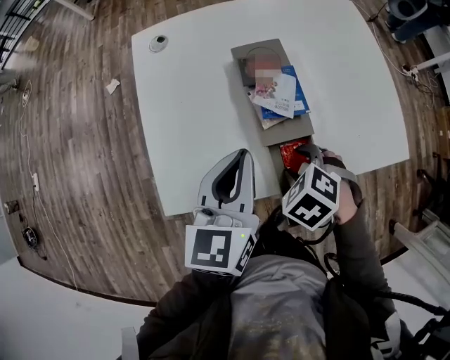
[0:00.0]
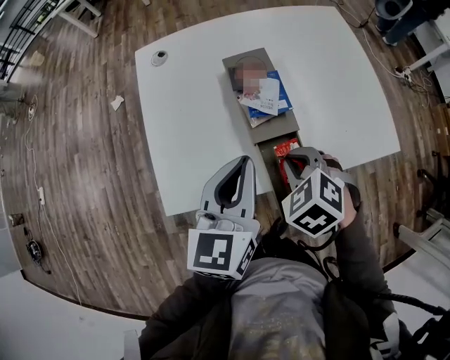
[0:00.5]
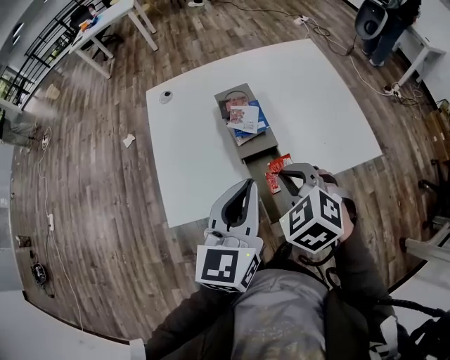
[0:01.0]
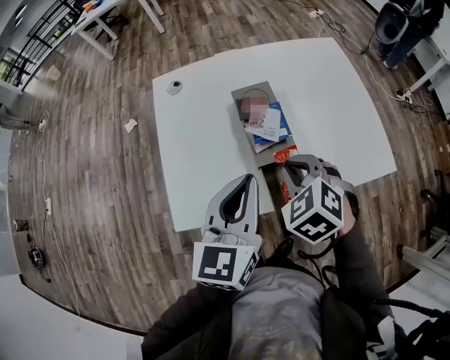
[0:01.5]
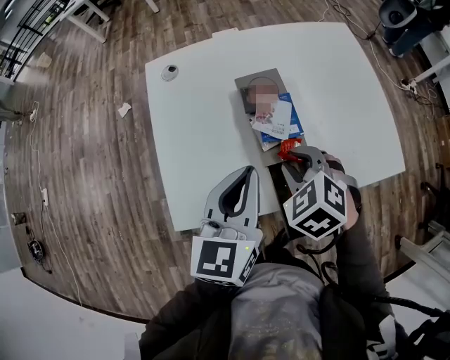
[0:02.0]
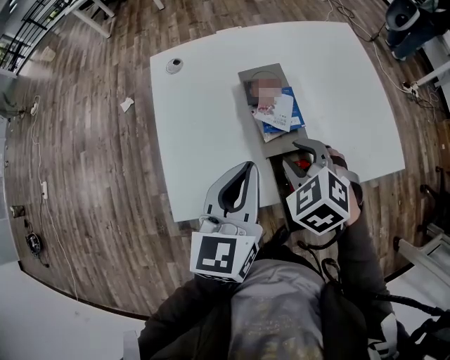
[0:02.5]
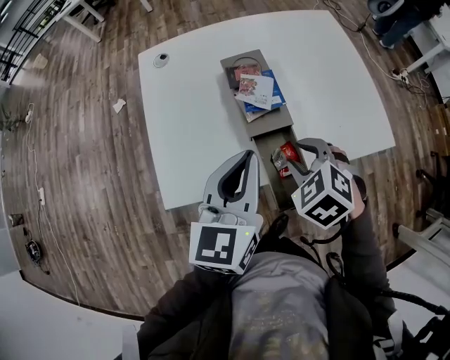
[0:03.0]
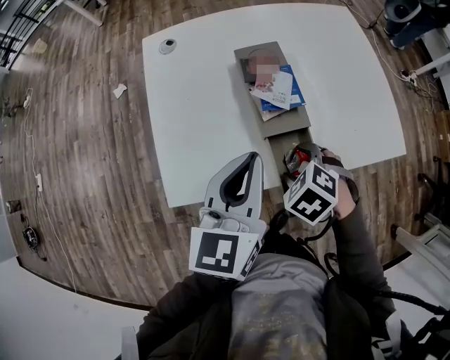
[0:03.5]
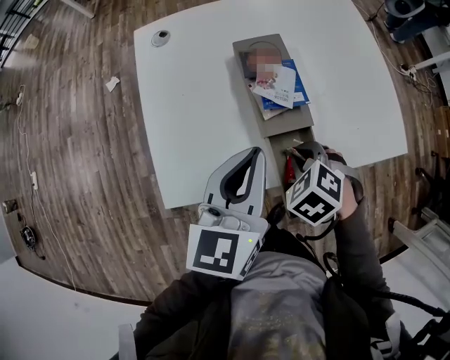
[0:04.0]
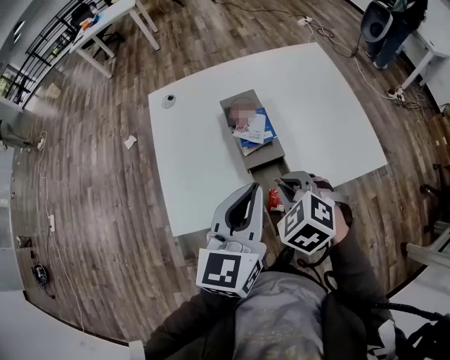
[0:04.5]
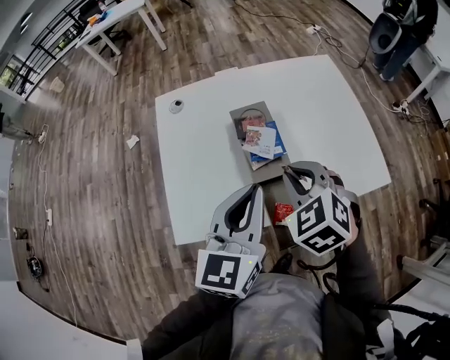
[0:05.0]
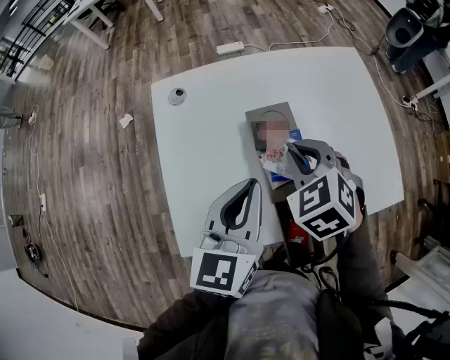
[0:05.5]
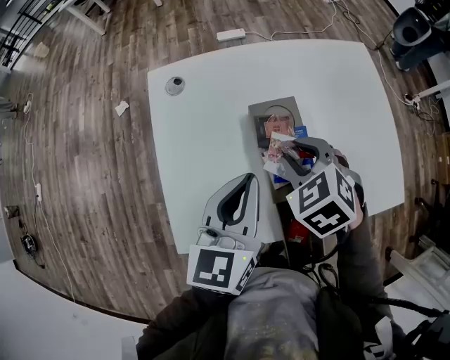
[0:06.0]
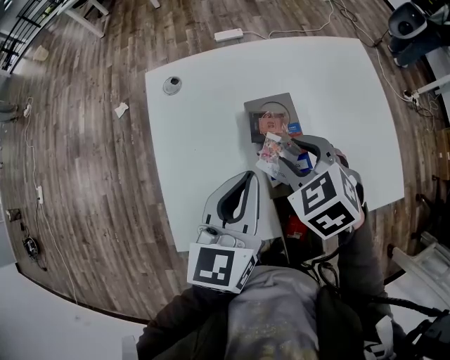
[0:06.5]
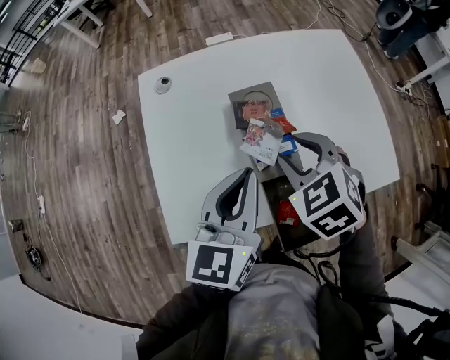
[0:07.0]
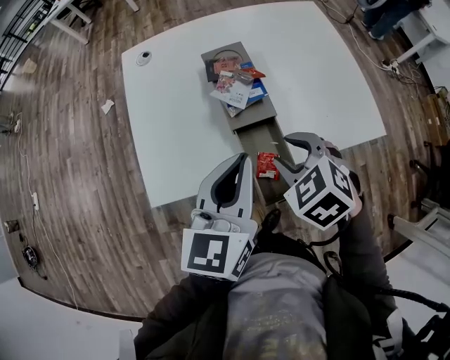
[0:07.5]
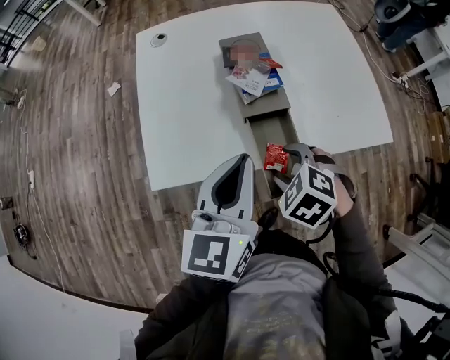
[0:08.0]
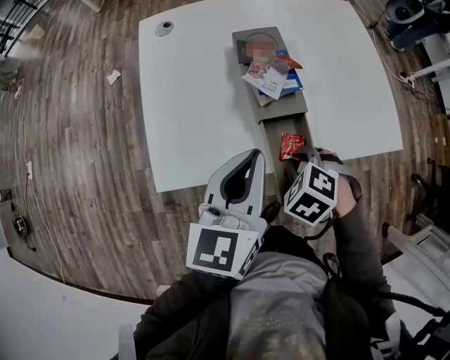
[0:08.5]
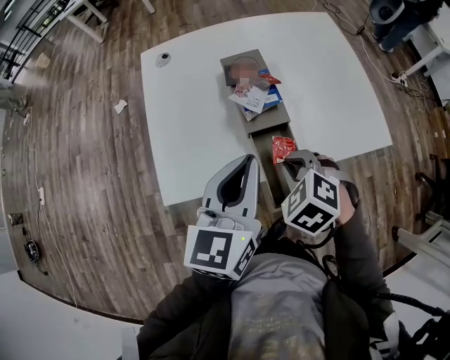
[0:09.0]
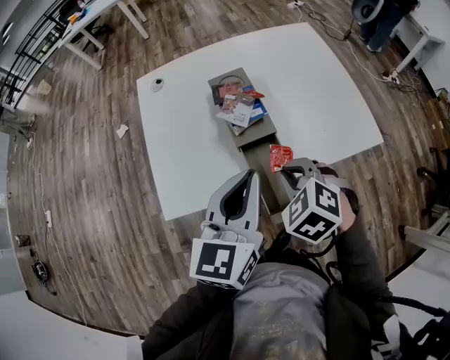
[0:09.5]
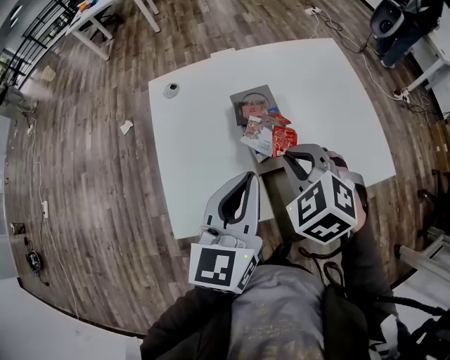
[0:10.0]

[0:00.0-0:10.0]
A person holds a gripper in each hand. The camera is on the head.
0:00.0 to 0:02.0: The right gripper is displaced upward by approximately 10 cm, and closes up.
0:02.0 to 0:04.0: The right gripper shifts some 10 cm downward and backward, and opens and closes again.
0:04.0 to 0:06.0: The left gripper is displaced forward by about 10 cm. Meanwhile the right gripper heads forward and upward, covering roughly 20 cm.
0:06.0 to 0:08.0: The two grippers go some 20 cm backward. The right gripper opens up.
0:08.0 to 0:10.0: The right gripper moves about 20 cm, rotates about 20 degrees, and closes. Meanwhile the left gripper moves about 10 cm.

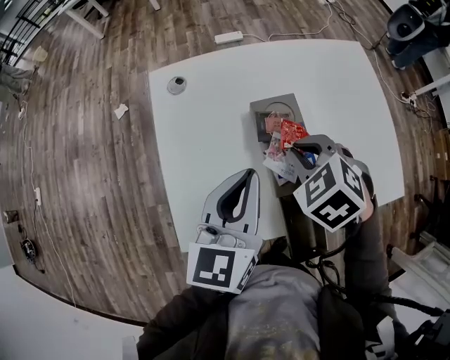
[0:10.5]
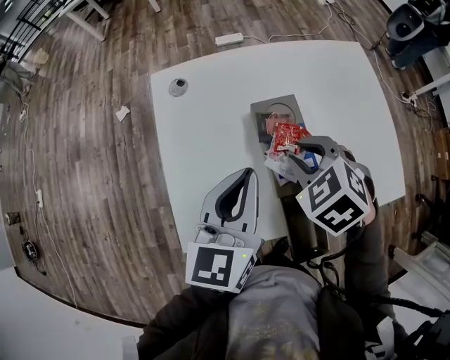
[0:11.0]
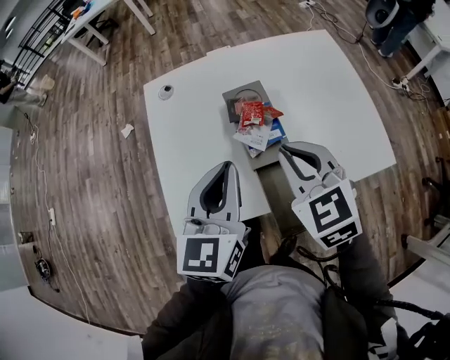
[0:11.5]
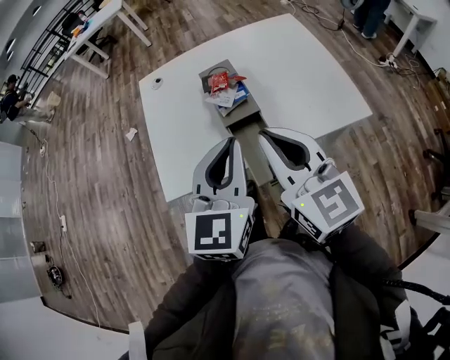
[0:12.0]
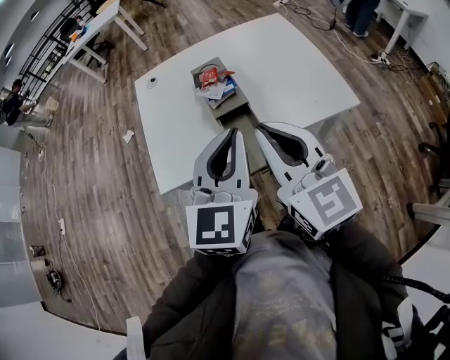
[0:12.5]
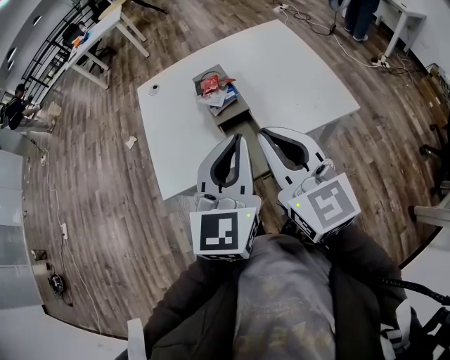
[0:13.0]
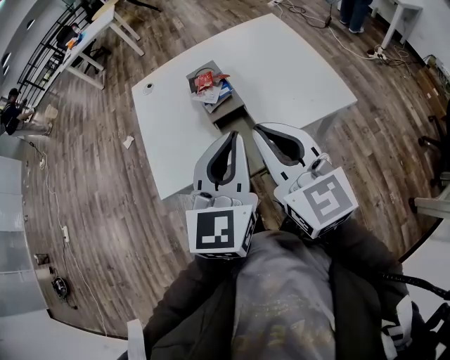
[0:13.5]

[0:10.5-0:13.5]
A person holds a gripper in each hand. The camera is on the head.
0:10.5 to 0:12.0: The left gripper travels backward and to the right by roughly 20 cm; the right gripper travels backward and upward by roughly 30 cm, and tilts its fingers about 60 degrees upward.
0:12.0 to 0:13.5: The left gripper shifts by roughly 5 cm.

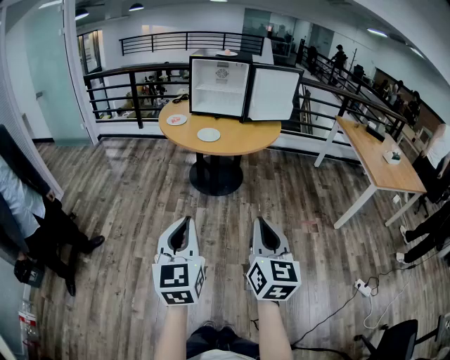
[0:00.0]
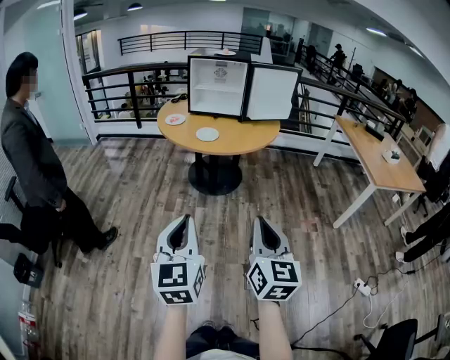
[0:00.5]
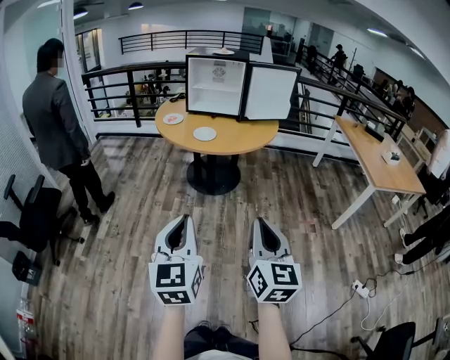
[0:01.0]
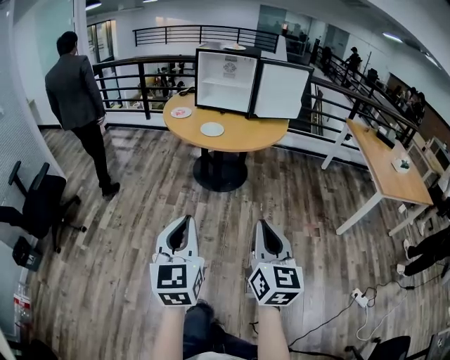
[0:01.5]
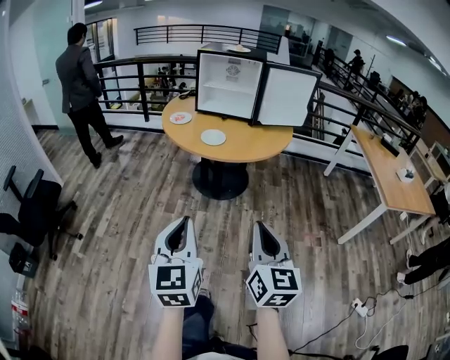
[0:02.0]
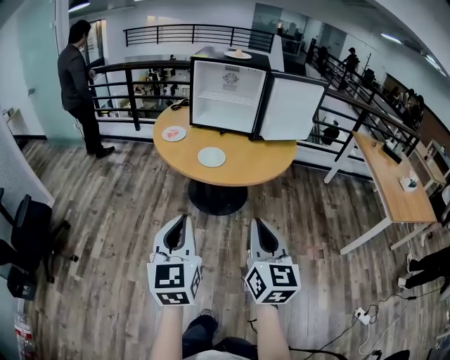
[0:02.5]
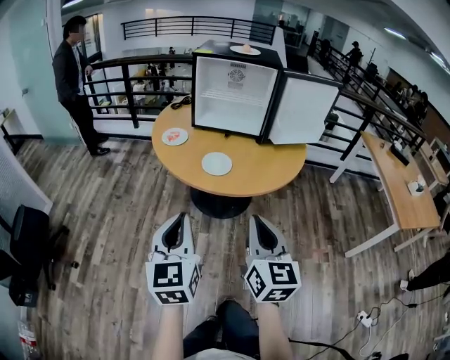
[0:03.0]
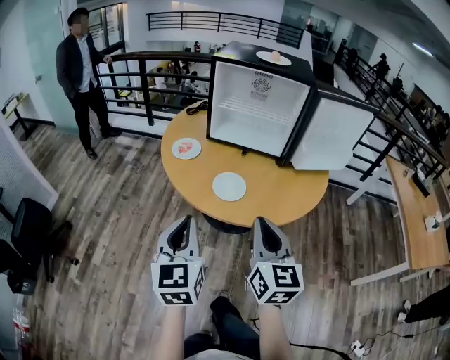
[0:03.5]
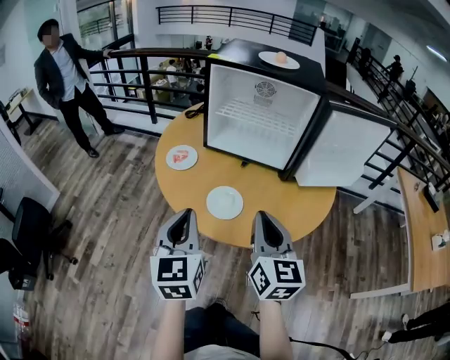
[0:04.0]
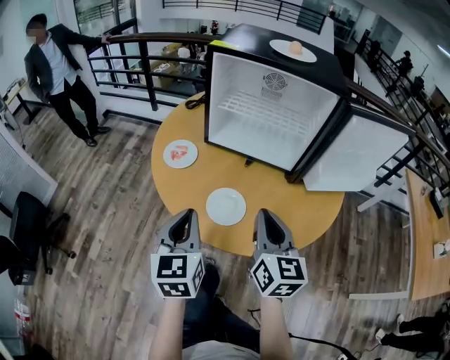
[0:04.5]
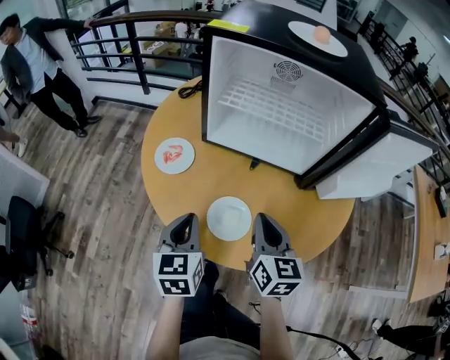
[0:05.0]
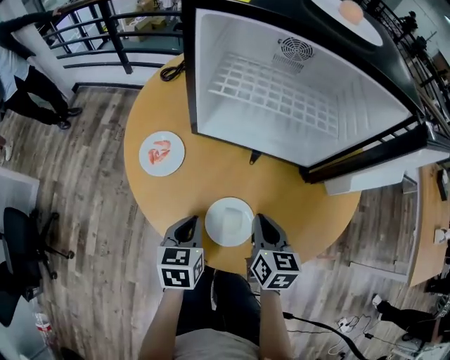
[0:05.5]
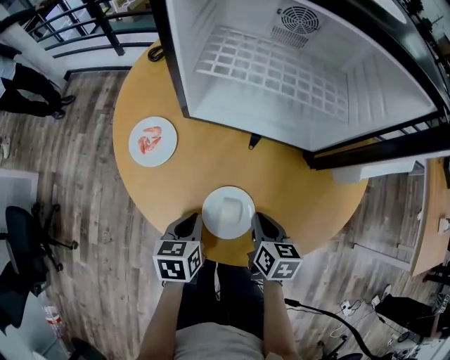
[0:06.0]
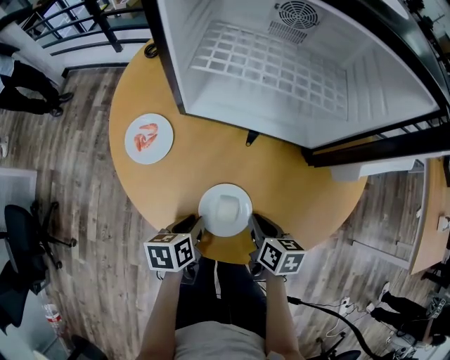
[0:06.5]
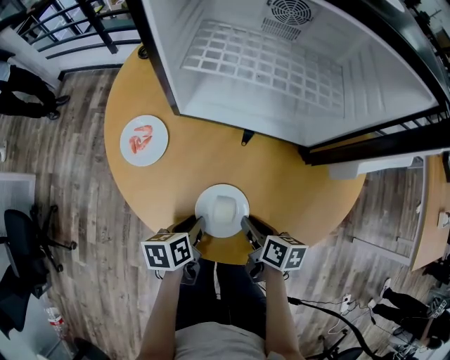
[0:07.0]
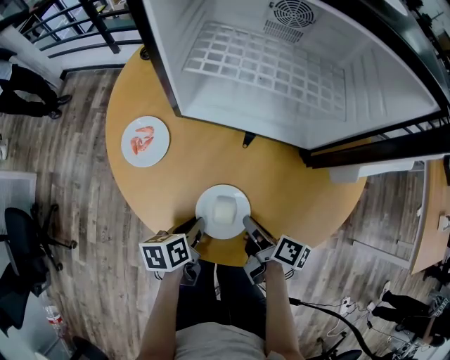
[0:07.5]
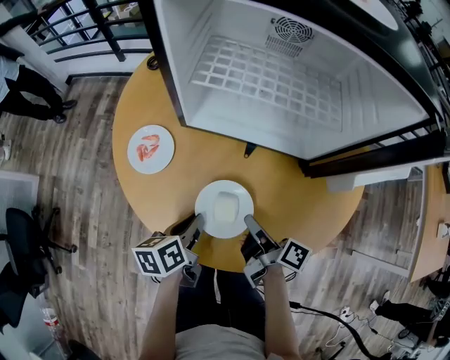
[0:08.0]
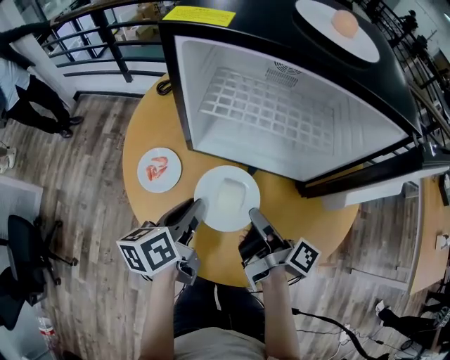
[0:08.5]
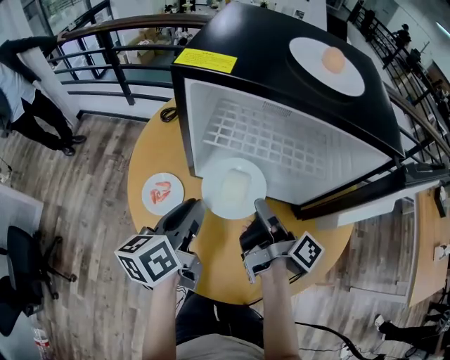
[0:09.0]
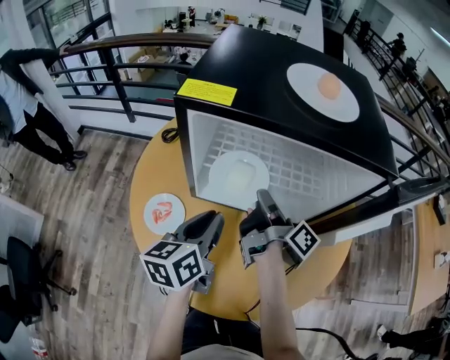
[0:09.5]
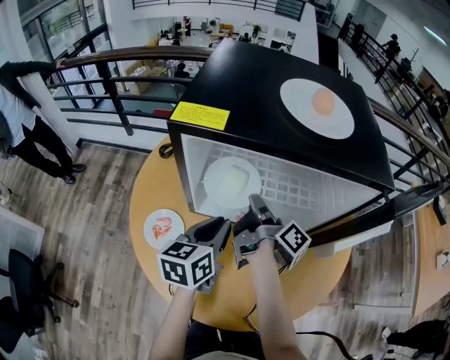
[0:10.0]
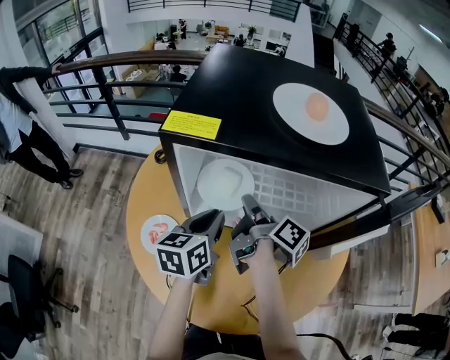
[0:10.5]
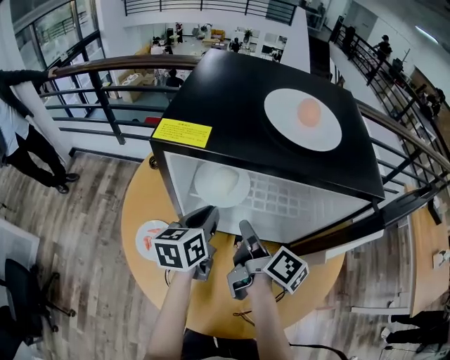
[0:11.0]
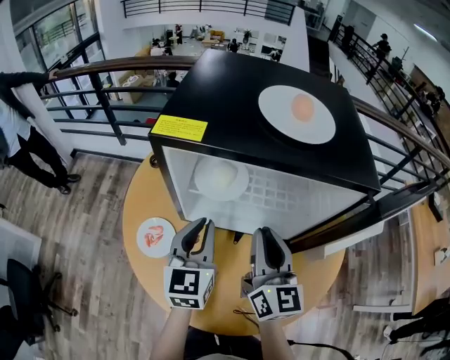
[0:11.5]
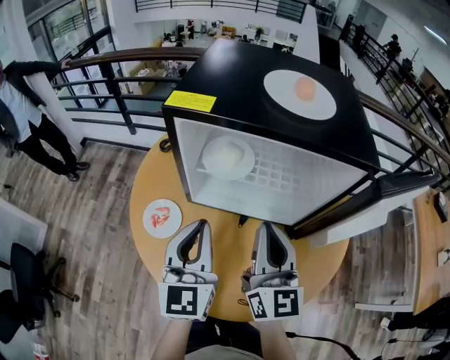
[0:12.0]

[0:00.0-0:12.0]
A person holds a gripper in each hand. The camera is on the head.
0:00.0 to 0:02.0: Both grippers move forward, about 10 cm.
0:02.0 to 0:04.0: Both grippers are carried forward, about 50 cm.
0:04.0 to 0:06.0: Both grippers move downward and forward, approximately 30 cm. The right gripper tilts its fingers about 40 degrees downward; the left gripper angles its fingers downward, by roughly 40 degrees.
0:06.0 to 0:08.0: The left gripper turns by approximately 20 degrees; the right gripper twists approximately 50 degrees clockwise, seen from behind.
0:08.0 to 0:10.0: The two grippers go approximately 25 cm forward and upward. The left gripper swivels about 30 degrees. The right gripper turns by approximately 30 degrees.
0:10.0 to 0:12.0: The right gripper heads backward and upward, covering approximately 20 cm, and rolls counterclockwise, seen from behind, by roughly 80 degrees; the left gripper heads upward and backward, covering about 15 cm, and rotates some 40 degrees.

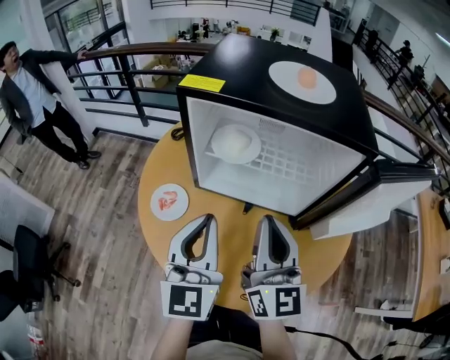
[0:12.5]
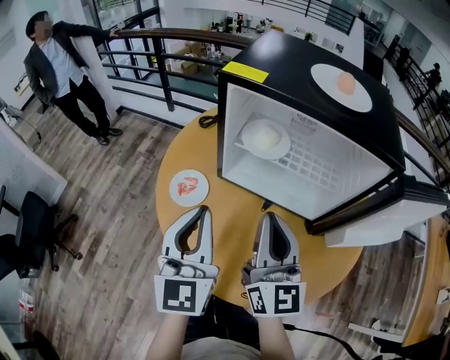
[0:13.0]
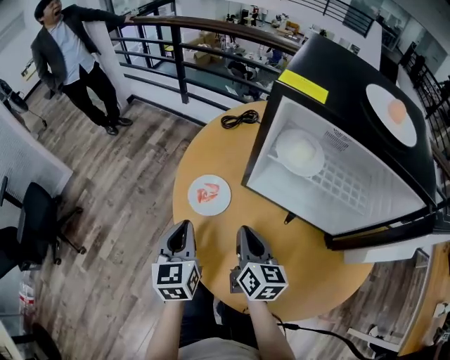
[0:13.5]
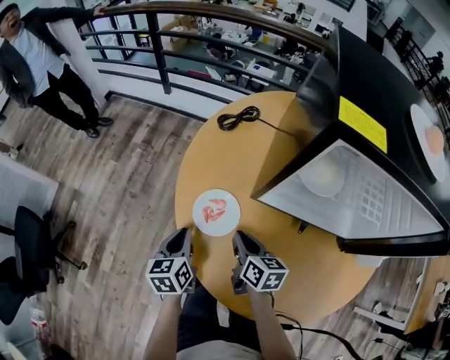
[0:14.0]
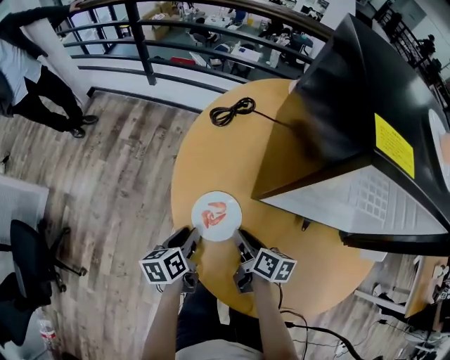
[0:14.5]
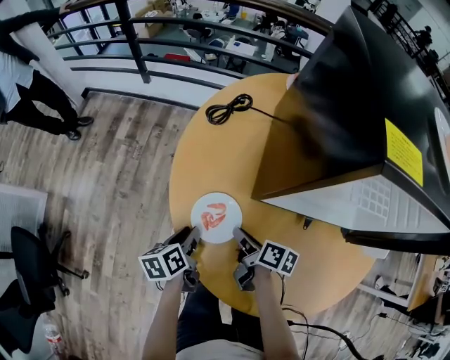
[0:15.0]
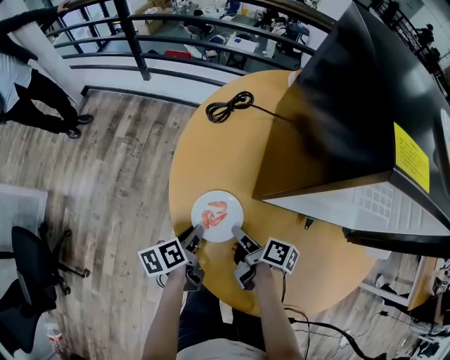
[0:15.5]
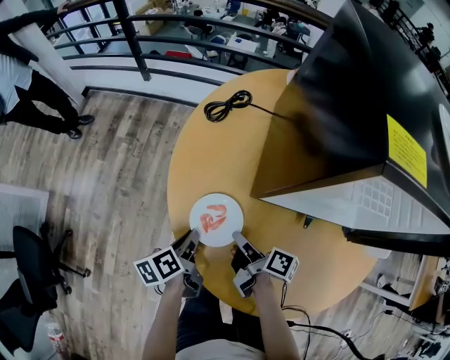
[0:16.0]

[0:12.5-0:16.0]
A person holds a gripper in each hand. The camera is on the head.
0:12.5 to 0:14.5: The left gripper goes some 40 cm downward, to the left and forward, points its fingers some 40 degrees further downward, and opens its fingers. The right gripper moves downward and to the left, some 40 cm, and tilts its fingers some 40 degrees downward.
0:14.5 to 0:16.0: The right gripper swivels some 30 degrees.
